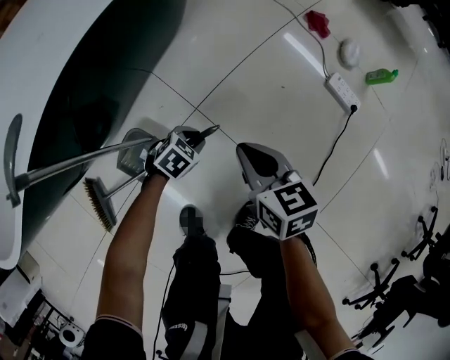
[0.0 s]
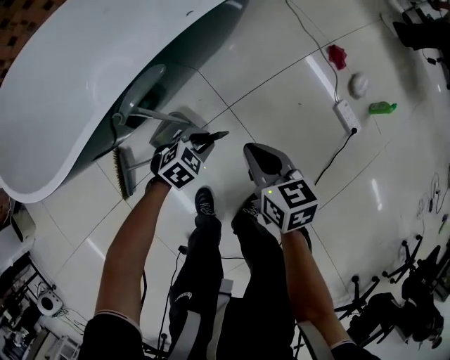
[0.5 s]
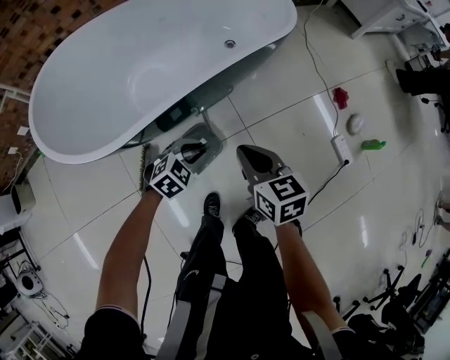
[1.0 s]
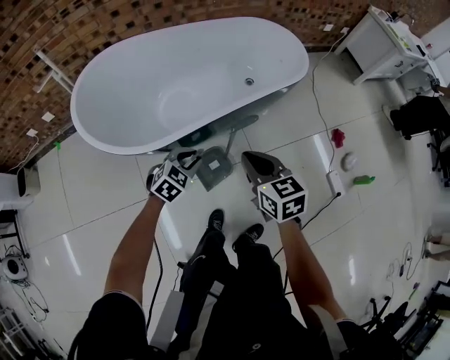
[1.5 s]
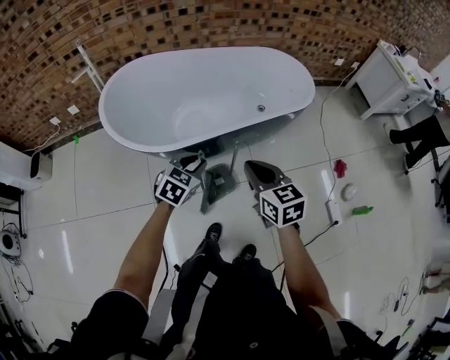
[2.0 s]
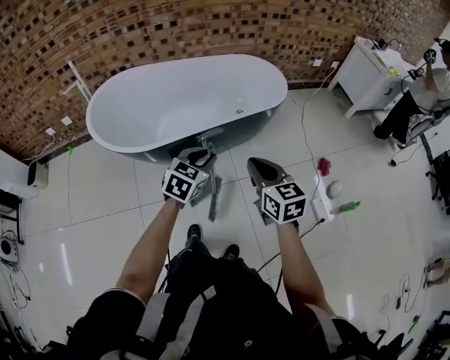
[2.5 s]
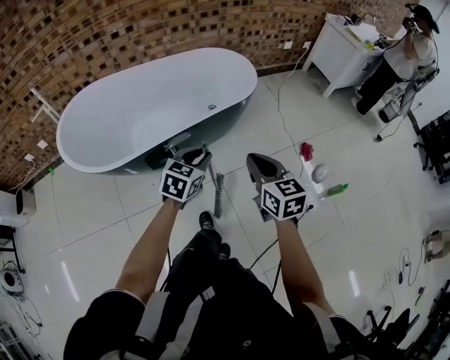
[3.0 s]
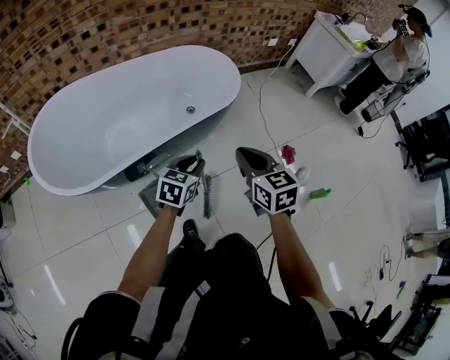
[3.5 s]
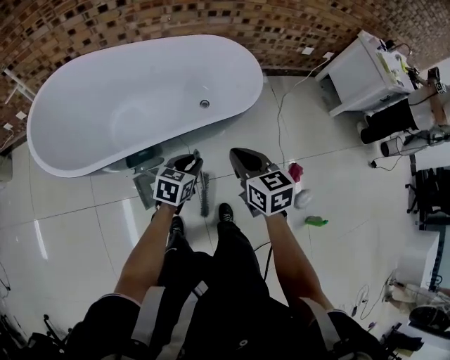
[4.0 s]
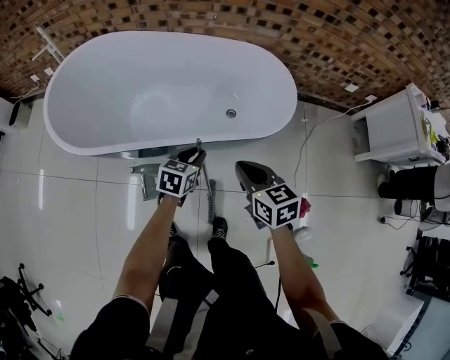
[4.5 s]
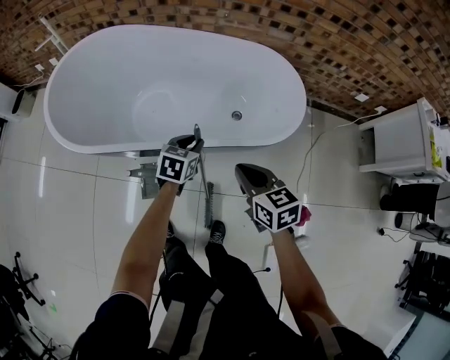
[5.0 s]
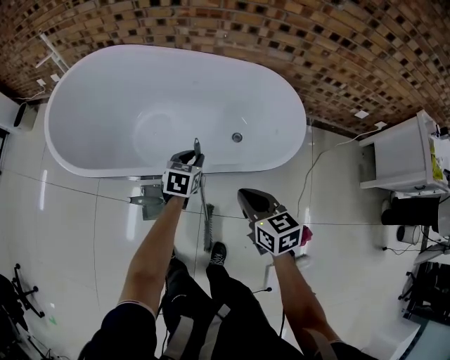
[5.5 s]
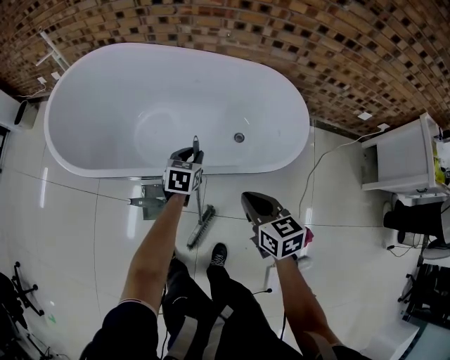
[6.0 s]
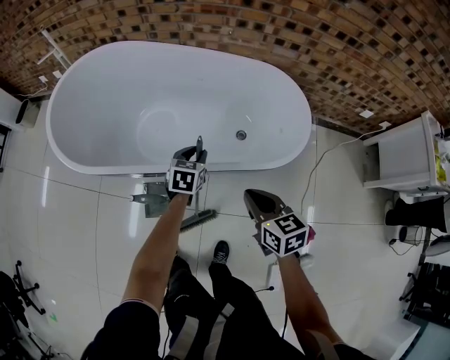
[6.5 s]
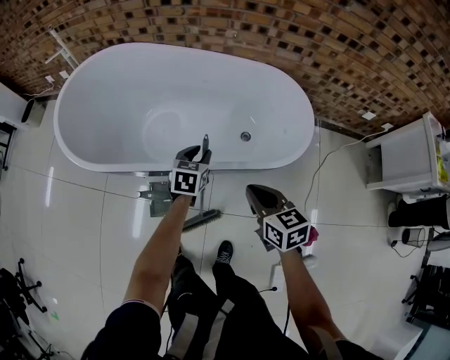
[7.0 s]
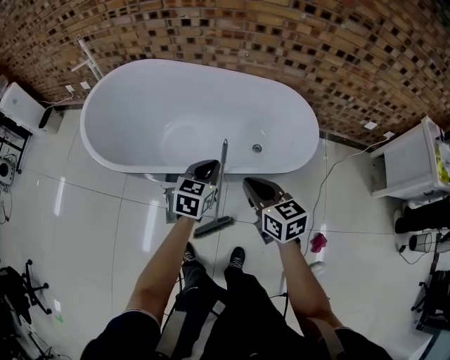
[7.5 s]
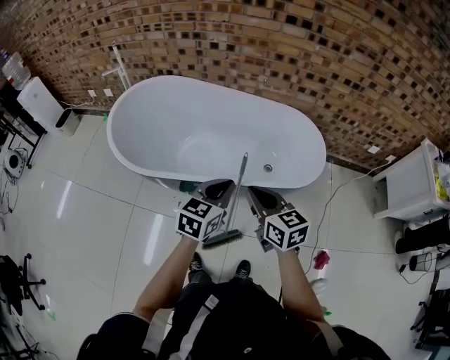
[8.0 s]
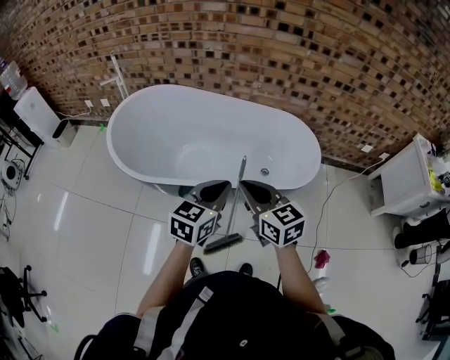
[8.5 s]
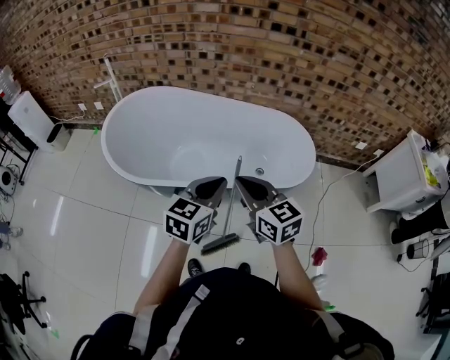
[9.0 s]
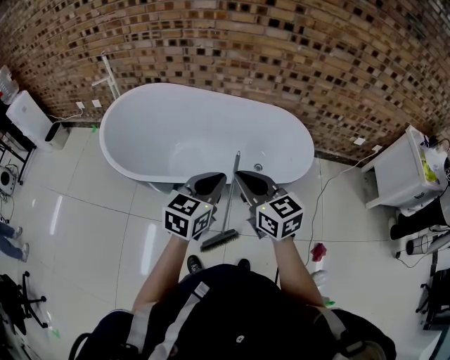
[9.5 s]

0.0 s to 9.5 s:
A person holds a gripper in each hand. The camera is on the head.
0.0 to 2.0 s: The grippers both shift upward by approximately 50 cm. The left gripper rotates about 50 degrees; the right gripper turns by approximately 40 degrees.
2.0 to 4.0 s: The grippers both shift to the right and forward by some 35 cm. The left gripper rotates roughly 20 degrees.
4.0 to 5.5 s: The left gripper shifts by about 20 cm, and swivels some 30 degrees, while the right gripper ends up some 10 cm from where it was, and turns by approximately 20 degrees.
5.5 to 7.5 s: The left gripper travels upward and backward by roughly 15 cm, and closes its fingers. The right gripper shifts about 10 cm upward and to the left.
7.5 to 9.5 s: The right gripper is displaced upward and to the left by roughly 15 cm; the left gripper travels upward and backward by about 20 cm.

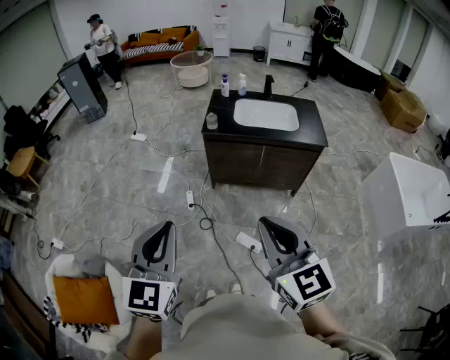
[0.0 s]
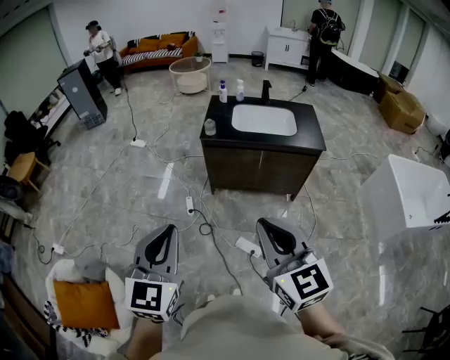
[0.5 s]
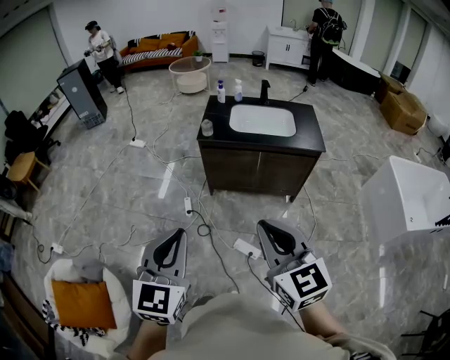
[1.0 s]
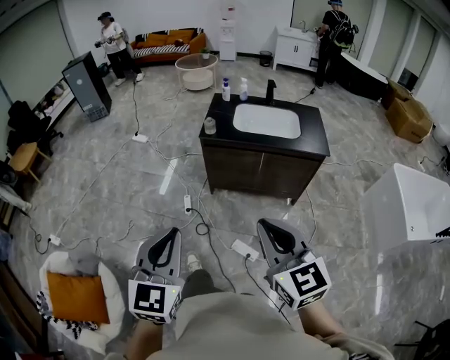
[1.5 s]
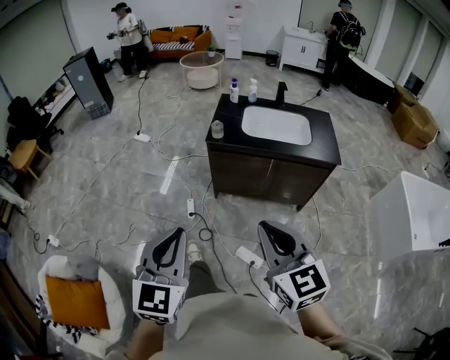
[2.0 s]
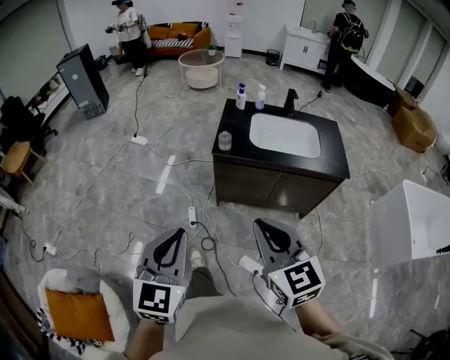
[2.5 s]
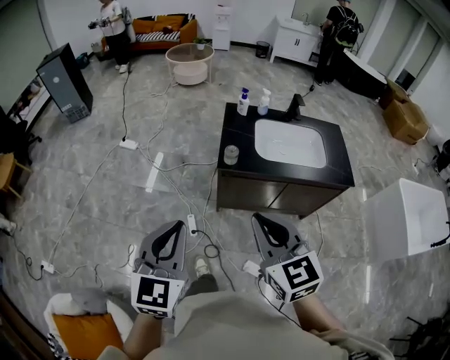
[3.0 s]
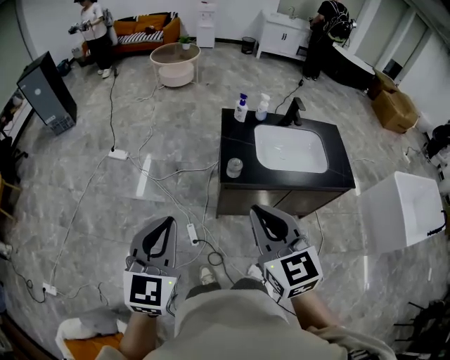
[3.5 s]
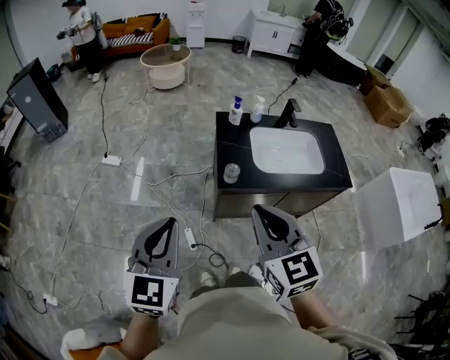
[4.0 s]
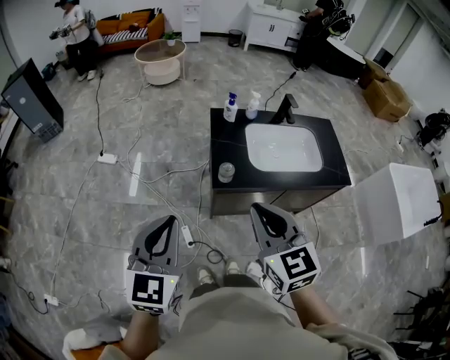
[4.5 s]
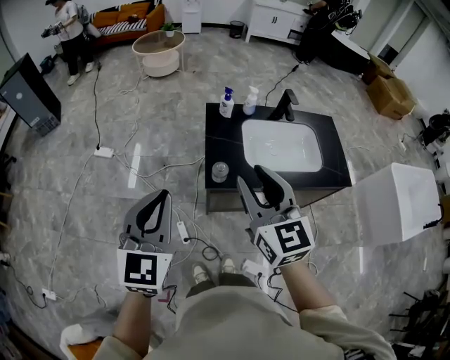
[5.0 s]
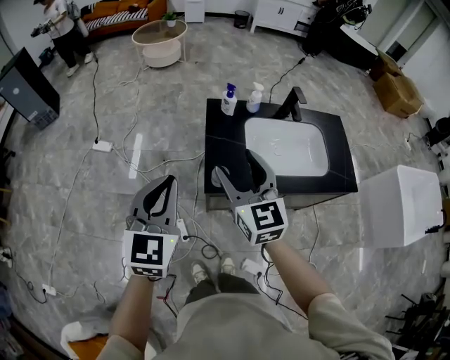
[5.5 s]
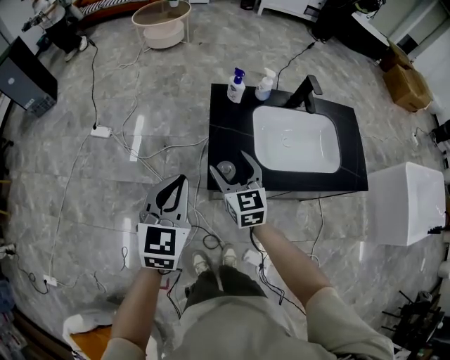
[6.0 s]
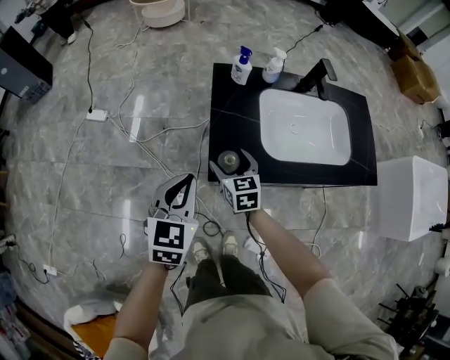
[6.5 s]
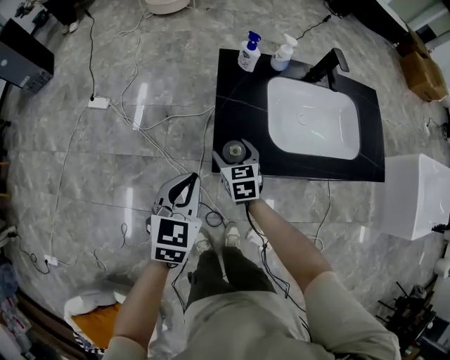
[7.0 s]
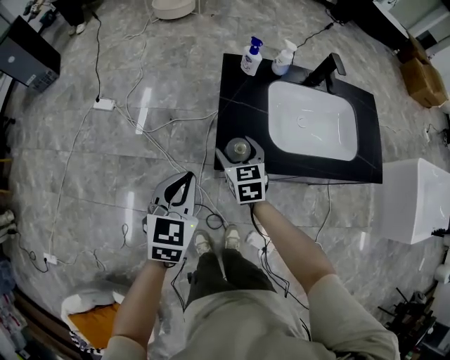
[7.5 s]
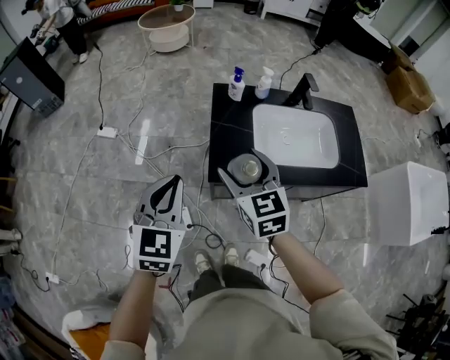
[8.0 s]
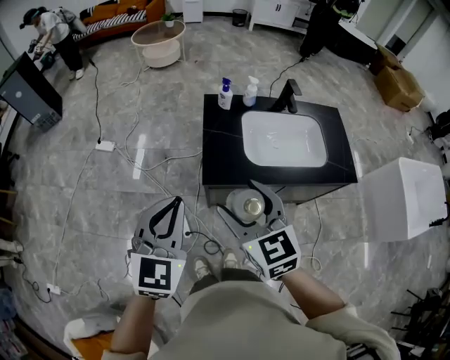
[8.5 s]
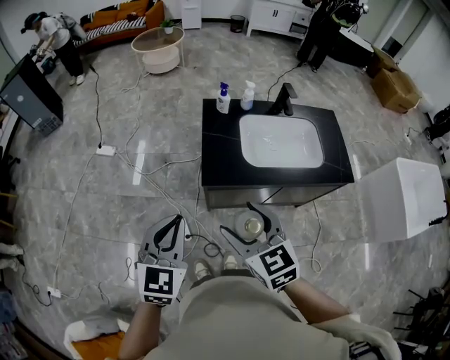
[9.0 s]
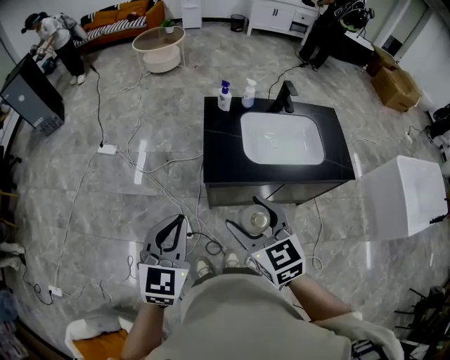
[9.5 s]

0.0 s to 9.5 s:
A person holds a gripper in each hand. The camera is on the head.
0.0 to 2.0 s: The two grippers go some 10 cm forward and downward.
2.0 to 4.0 s: The pair of grippers is taken forward and to the left, some 50 cm.
4.0 to 5.5 s: The grippers both shift forward by about 20 cm. The right gripper opens up.
5.5 to 7.5 s: The grippers both shift downward by about 25 cm. The right gripper rotates roughly 30 degrees.
7.5 to 9.5 s: The left gripper shifts some 25 cm upward and backward; the right gripper heads upward and backward, covering approximately 35 cm.

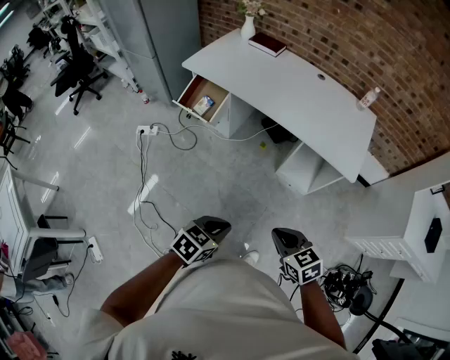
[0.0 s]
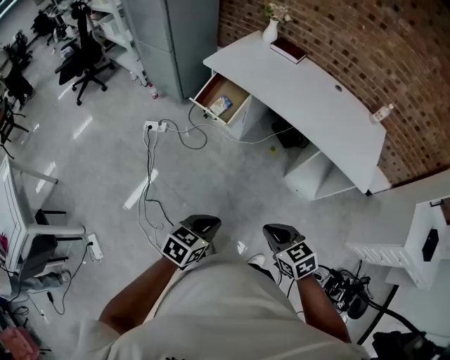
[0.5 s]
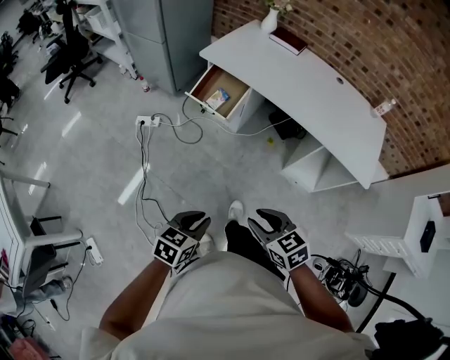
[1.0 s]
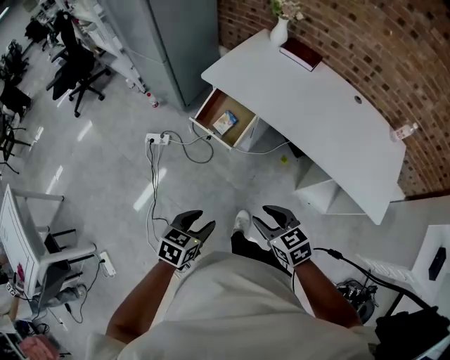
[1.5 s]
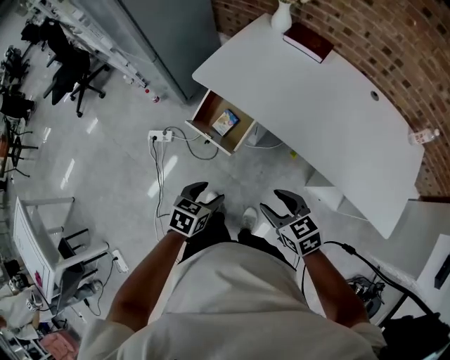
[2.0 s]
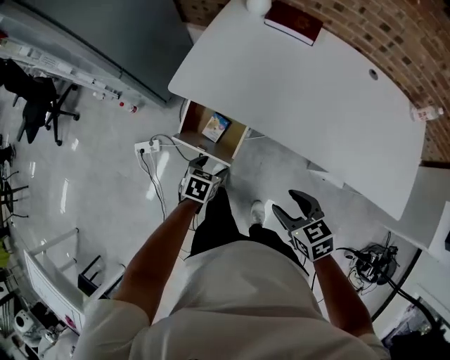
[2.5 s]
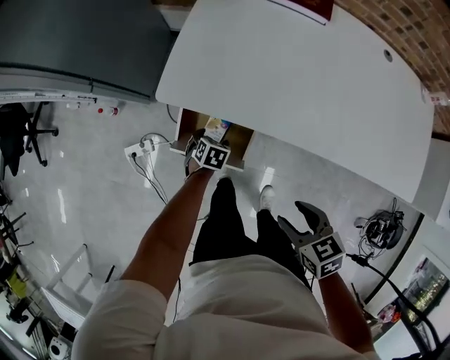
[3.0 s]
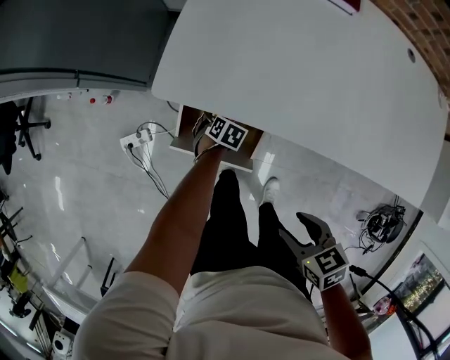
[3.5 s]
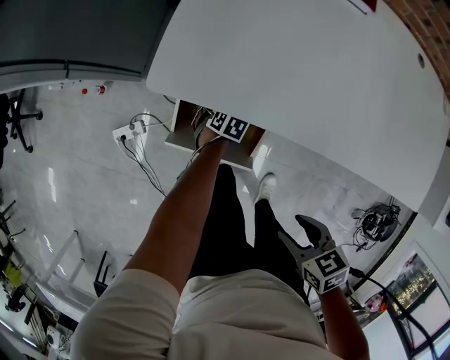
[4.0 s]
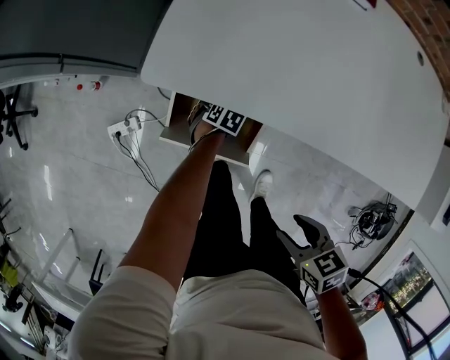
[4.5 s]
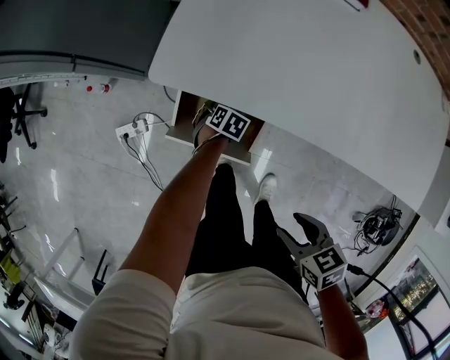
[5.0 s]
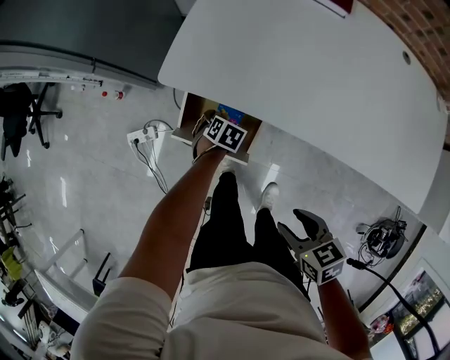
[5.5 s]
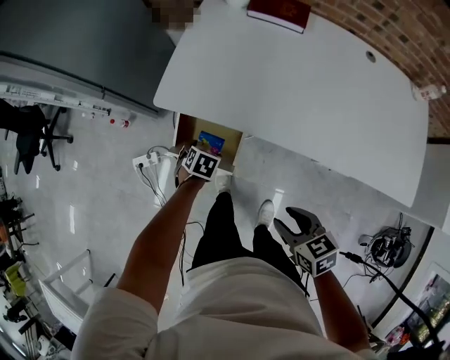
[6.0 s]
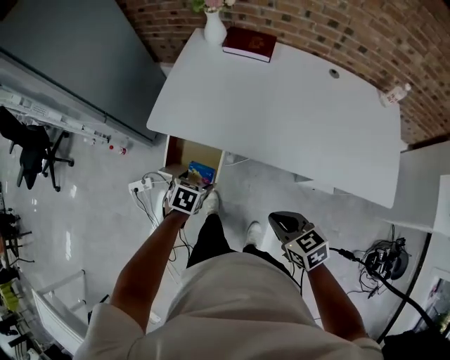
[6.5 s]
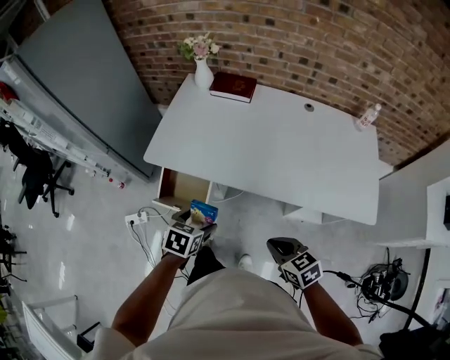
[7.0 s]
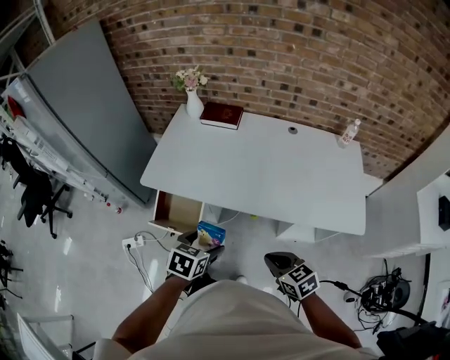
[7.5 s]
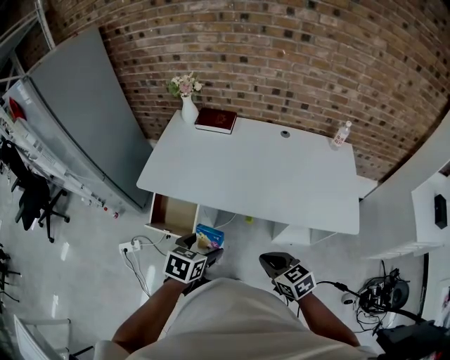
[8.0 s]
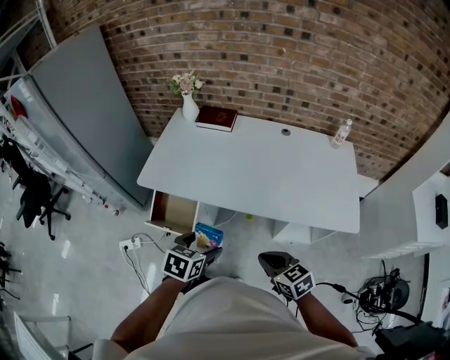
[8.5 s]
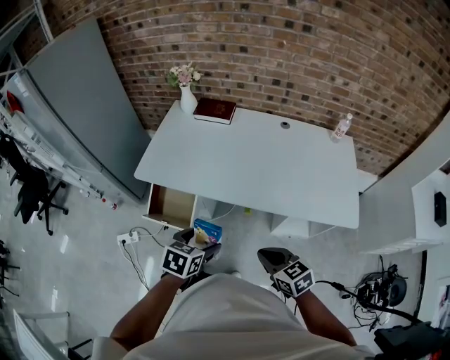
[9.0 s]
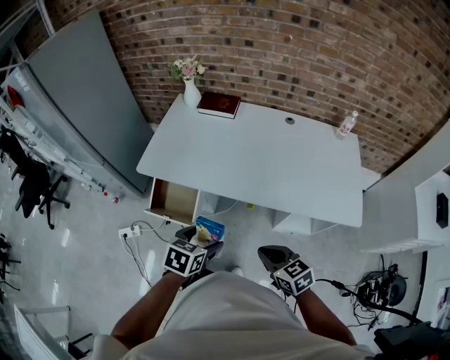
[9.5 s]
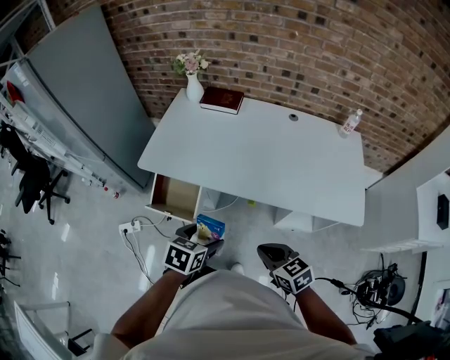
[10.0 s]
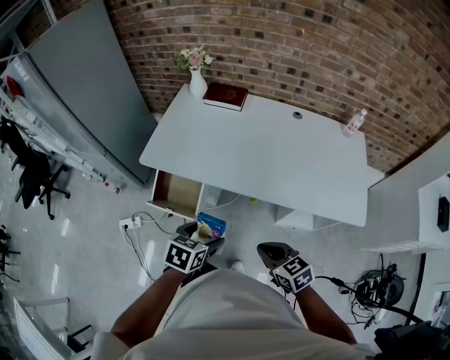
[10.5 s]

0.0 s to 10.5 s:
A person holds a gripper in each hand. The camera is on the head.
0.0 to 2.0 s: Both grippers are carried forward and to the left, some 50 cm. The right gripper opens. Meanwhile the left gripper changes its angle by roughly 20 degrees, and opens.
2.0 to 4.0 s: The right gripper moves about 25 cm, and rotates about 40 degrees, while the left gripper moves downward, approximately 40 cm, rotates about 50 degrees, and opens its fingers.
4.0 to 6.5 s: The right gripper shifts by about 25 cm, swivels about 30 degrees, and closes up, while the left gripper moves upward, roughly 30 cm, and changes its angle by approximately 50 degrees.
6.5 to 8.5 s: The left gripper moves upward, to the right and backward, some 30 cm; the right gripper shifts about 15 cm to the right, backward and upward.
8.5 to 10.5 s: The grippers make only small movements.
